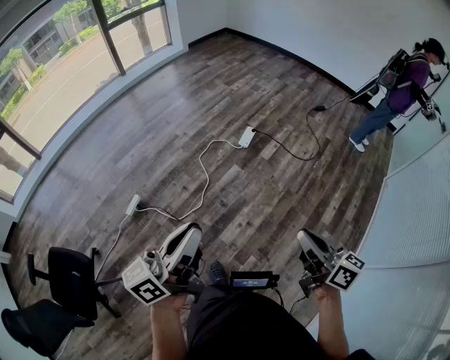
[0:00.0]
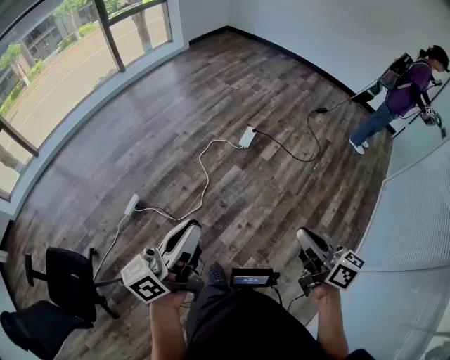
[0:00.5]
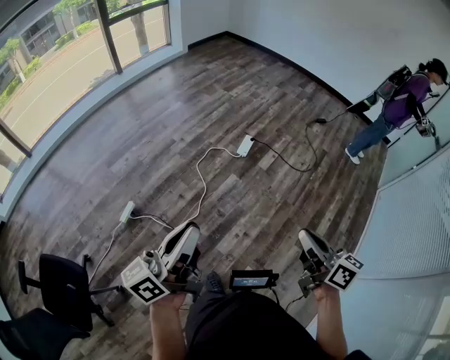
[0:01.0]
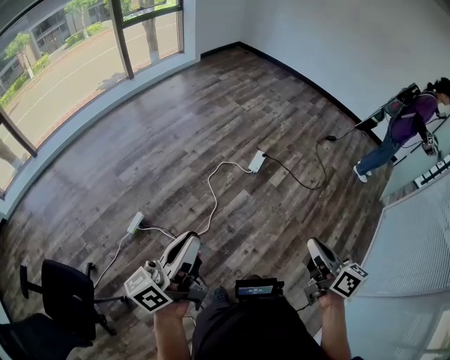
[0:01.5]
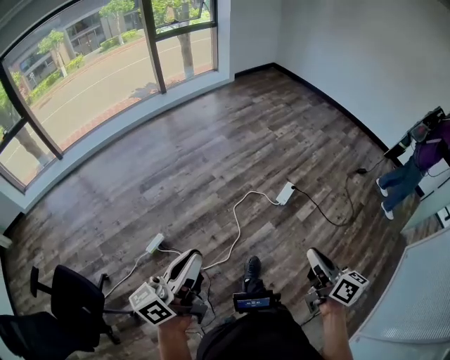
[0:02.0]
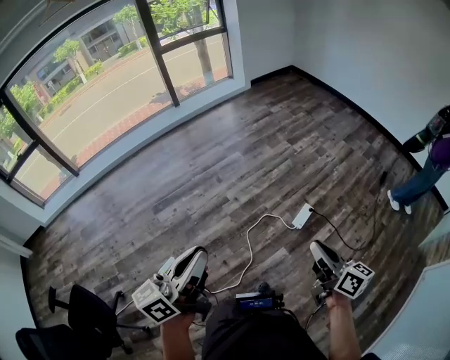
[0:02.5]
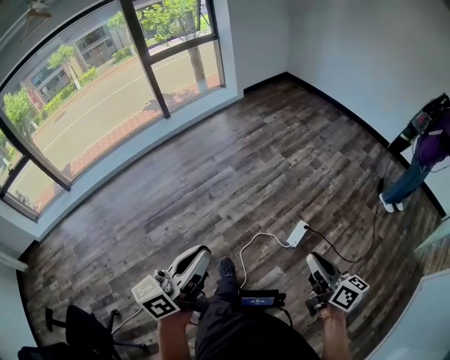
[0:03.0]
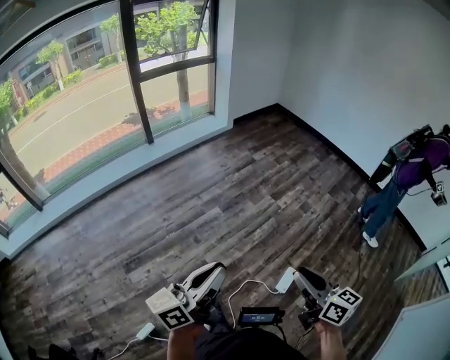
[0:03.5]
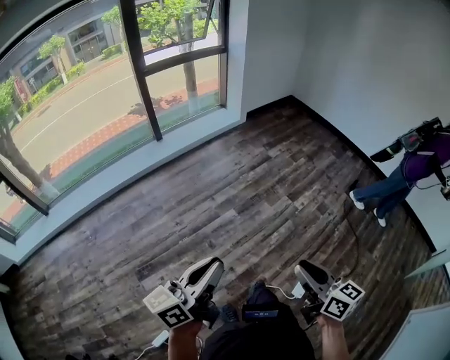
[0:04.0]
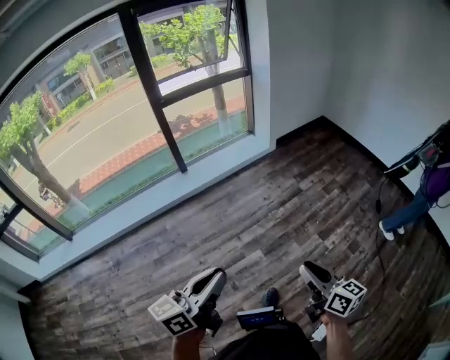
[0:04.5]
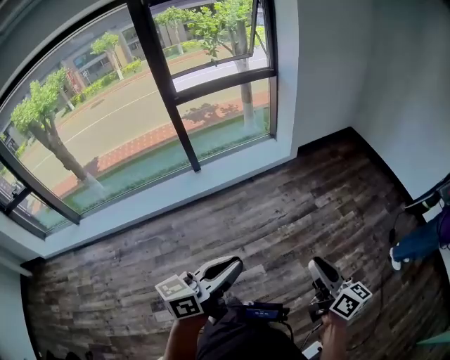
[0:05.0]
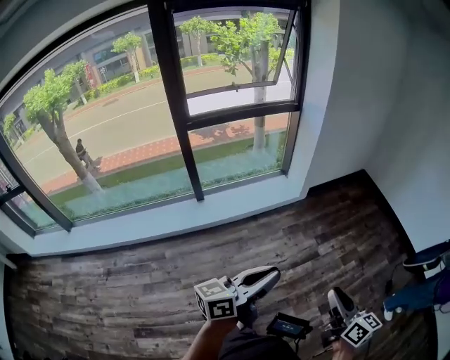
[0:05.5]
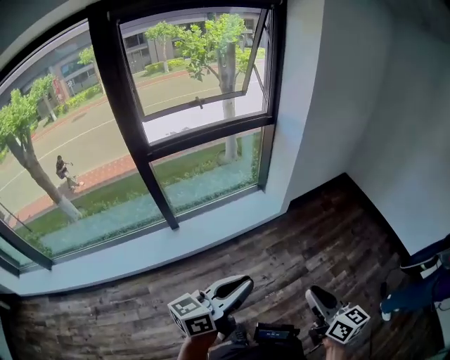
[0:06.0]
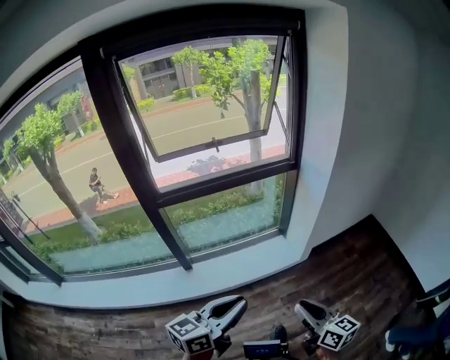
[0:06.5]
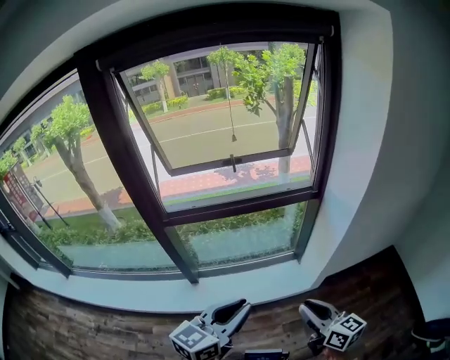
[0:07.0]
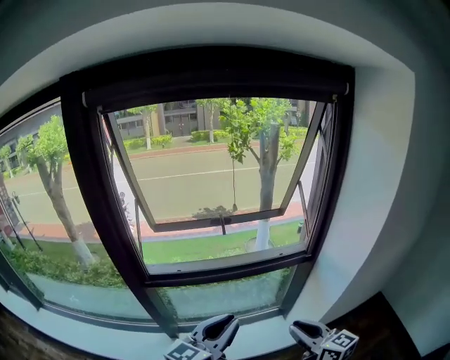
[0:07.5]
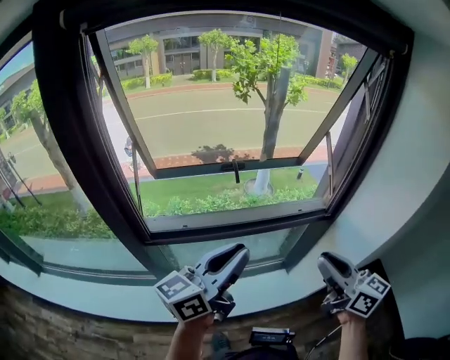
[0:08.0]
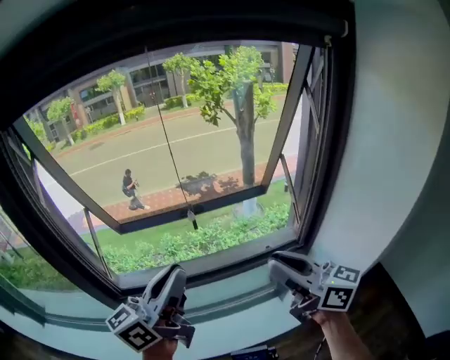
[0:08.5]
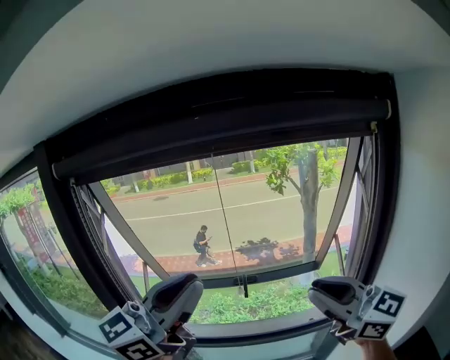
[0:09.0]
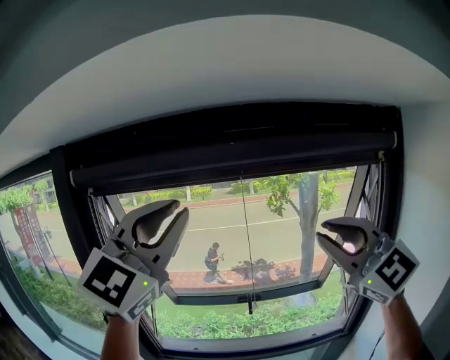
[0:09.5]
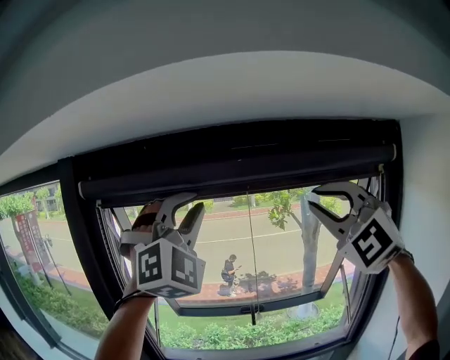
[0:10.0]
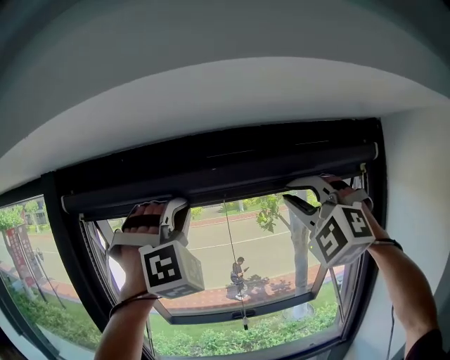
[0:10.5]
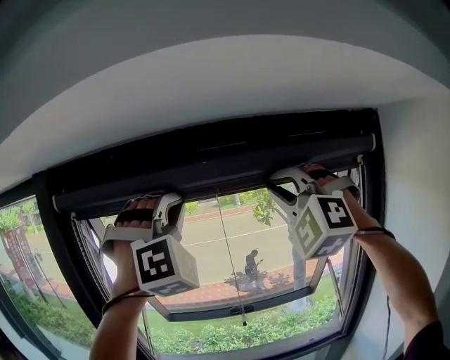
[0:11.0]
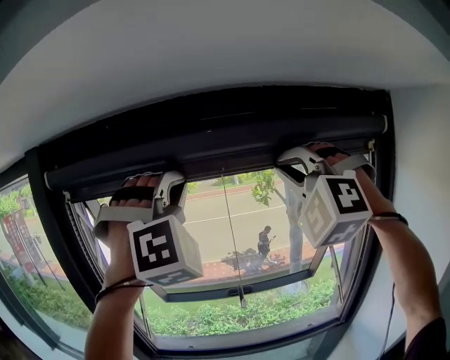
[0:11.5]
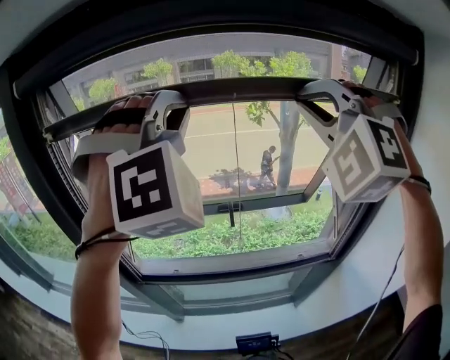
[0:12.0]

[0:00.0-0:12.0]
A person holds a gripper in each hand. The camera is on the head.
0:00.0 to 0:02.0: Both grippers travel together forward and to the left, about 30 cm.
0:02.0 to 0:04.0: The pair of grippers is taken forward, approximately 70 cm.
0:04.0 to 0:06.0: Both grippers are carried forward, some 80 cm.
0:06.0 to 0:08.0: Both grippers are carried forward, some 60 cm. The right gripper changes its angle by roughly 30 degrees. Meanwhile the left gripper turns by roughly 20 degrees.
0:08.0 to 0:10.0: The grippers both shift upward and forward by approximately 50 cm. The left gripper rolls clockwise, seen from behind, by about 110 degrees; the right gripper twists about 90 degrees counterclockwise, seen from behind.
0:10.0 to 0:12.0: The left gripper travels downward by some 10 cm, and rotates about 20 degrees, while the right gripper goes approximately 10 cm downward and forward, and swivels roughly 30 degrees.

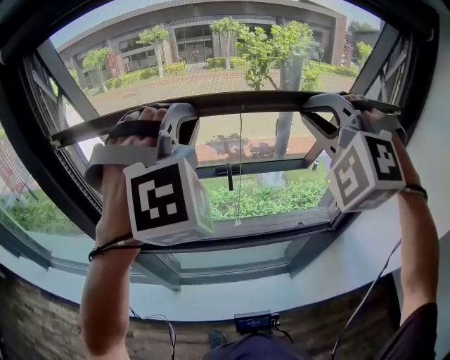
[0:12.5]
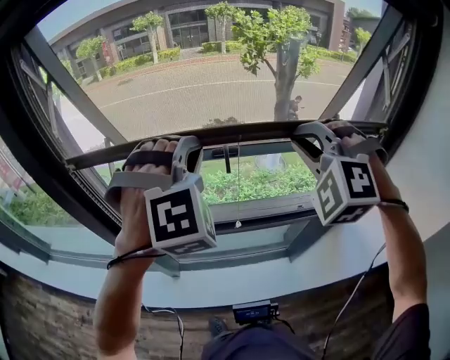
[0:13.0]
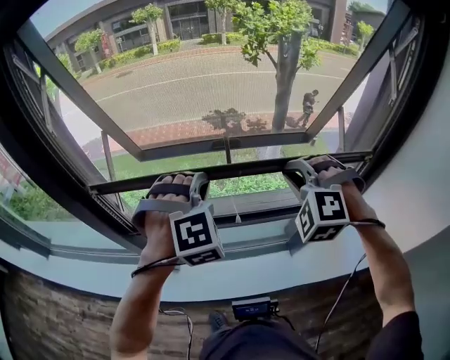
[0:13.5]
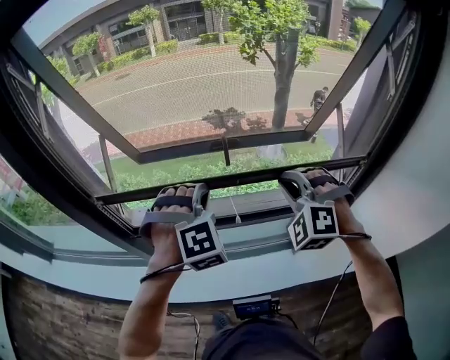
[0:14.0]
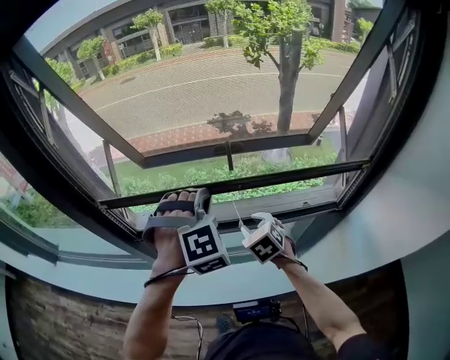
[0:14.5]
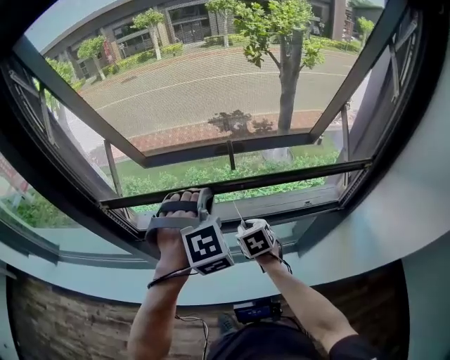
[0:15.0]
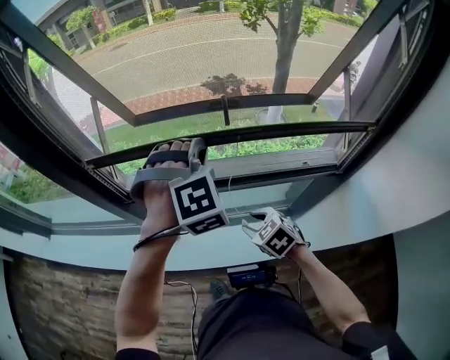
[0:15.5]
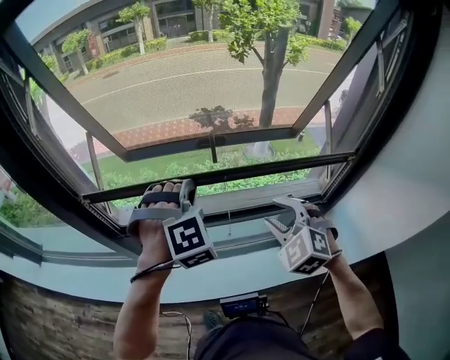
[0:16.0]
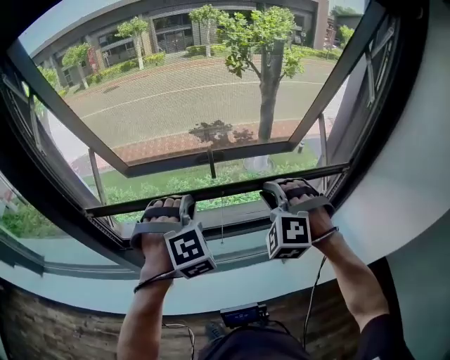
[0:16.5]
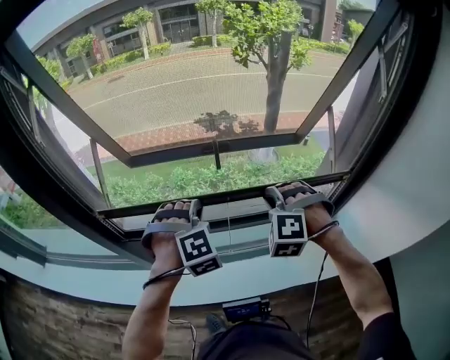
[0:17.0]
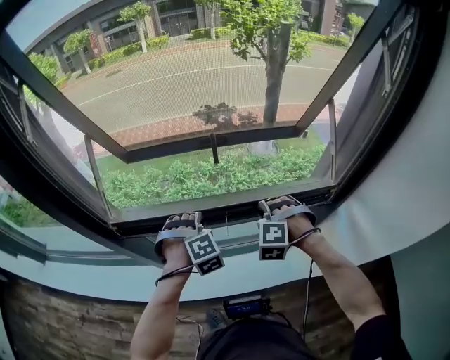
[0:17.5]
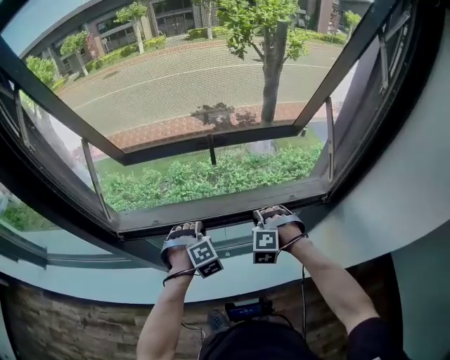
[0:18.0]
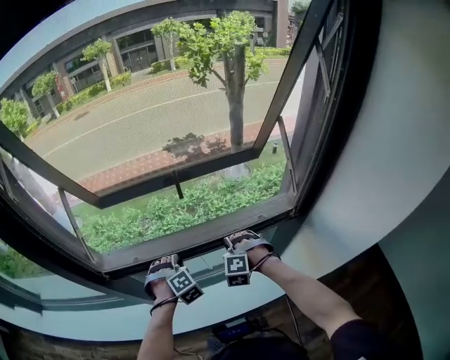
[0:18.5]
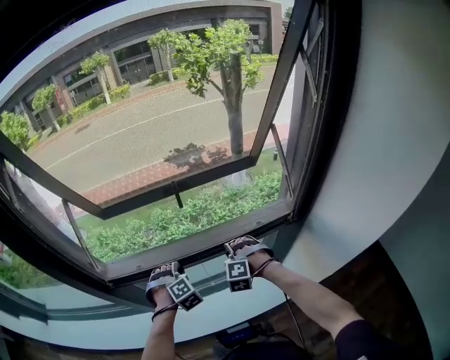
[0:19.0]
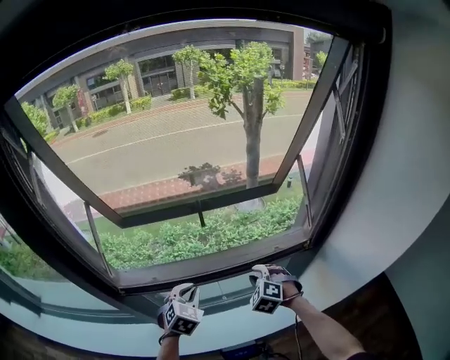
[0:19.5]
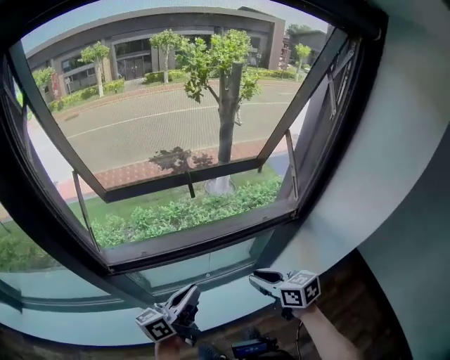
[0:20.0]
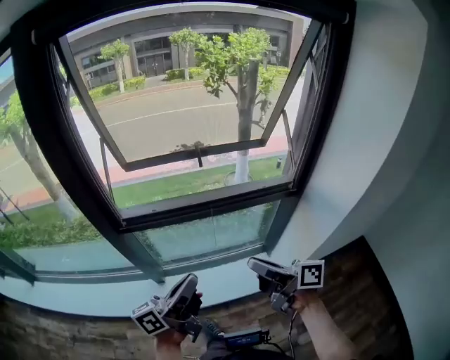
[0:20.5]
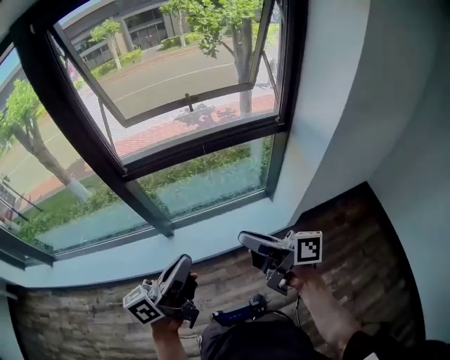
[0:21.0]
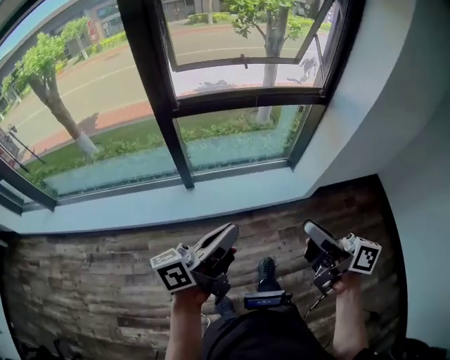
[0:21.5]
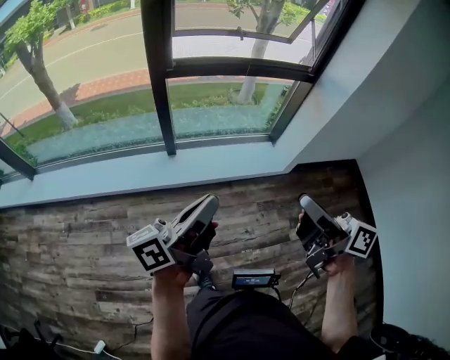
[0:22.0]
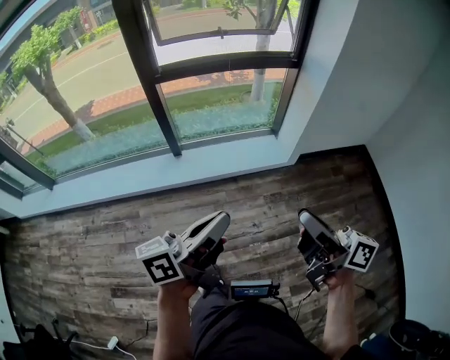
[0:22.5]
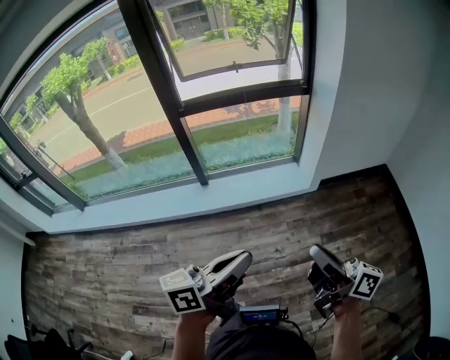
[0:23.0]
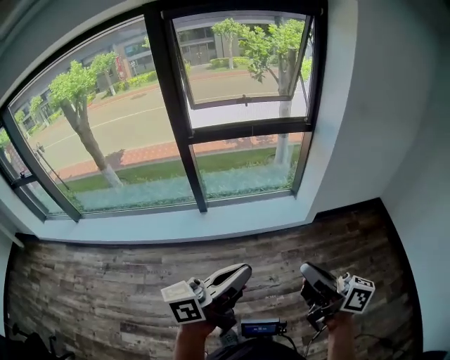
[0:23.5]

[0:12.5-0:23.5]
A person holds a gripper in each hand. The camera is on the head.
0:12.5 to 0:14.5: The left gripper heads downward, covering approximately 30 cm, and rotates approximately 30 degrees, while the right gripper is displaced downward by approximately 50 cm, twists about 60 degrees clockwise, seen from behind, and opens its fingers.
0:14.5 to 0:16.0: The right gripper shifts some 15 cm upward, backward and to the right, and swivels about 30 degrees.
0:16.0 to 0:18.0: Both grippers move downward, roughly 20 cm. The right gripper swivels some 30 degrees, and closes up.
0:18.0 to 0:20.0: The two grippers go about 20 cm backward and upward. The left gripper tips its fingers upward by roughly 60 degrees. The right gripper rotates around the line of its fingers by approximately 90 degrees, clockwise from behind.
0:20.0 to 0:21.5: Both grippers are carried backward, approximately 50 cm. The right gripper tilts its fingers some 30 degrees upward.
0:21.5 to 0:23.5: The right gripper travels backward by some 20 cm, while the left gripper moves backward and to the right, approximately 25 cm.

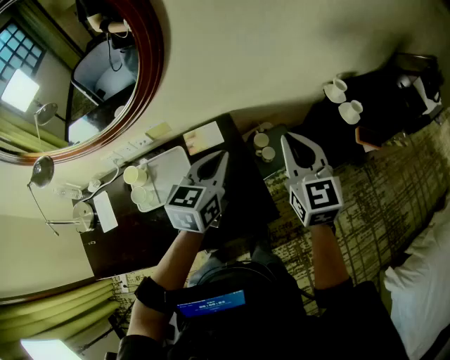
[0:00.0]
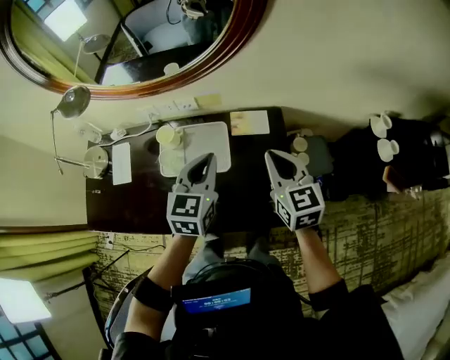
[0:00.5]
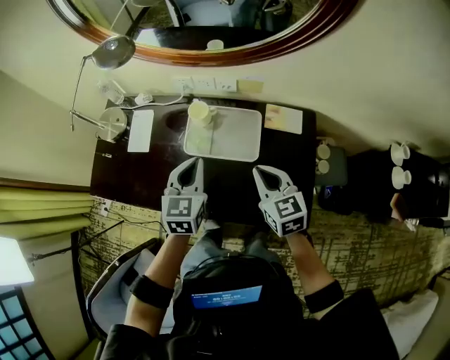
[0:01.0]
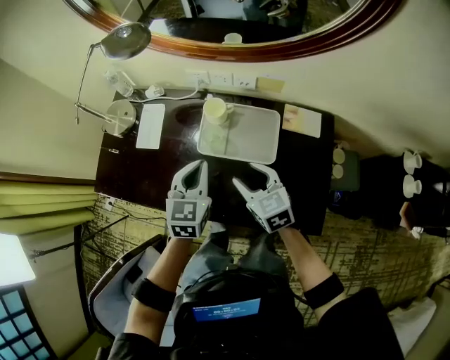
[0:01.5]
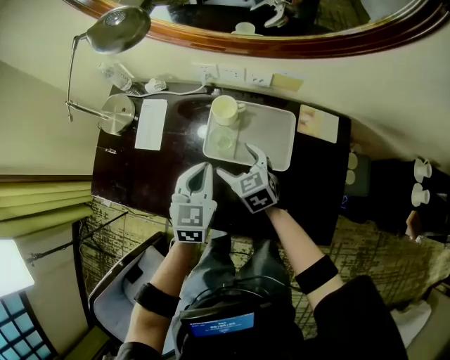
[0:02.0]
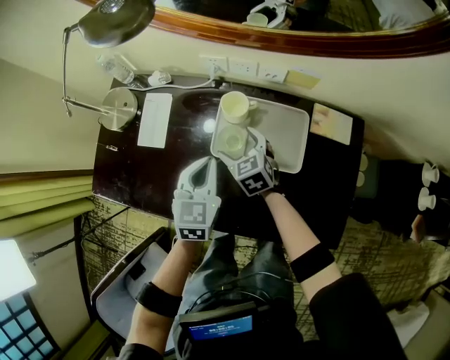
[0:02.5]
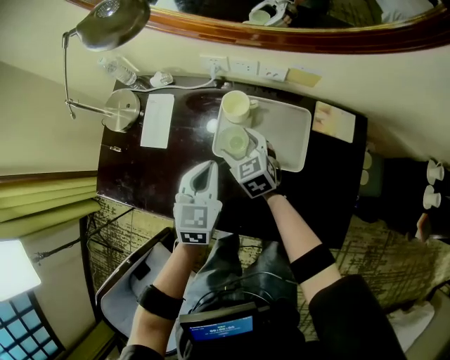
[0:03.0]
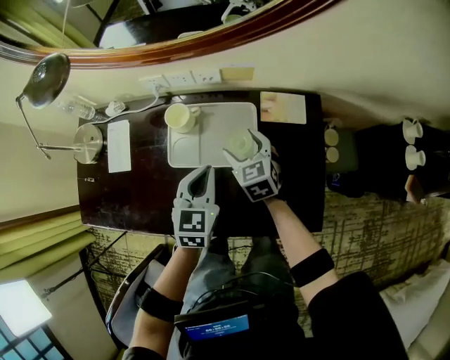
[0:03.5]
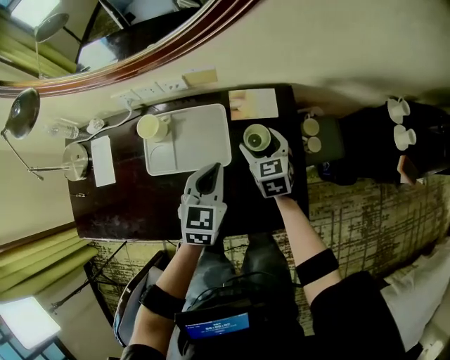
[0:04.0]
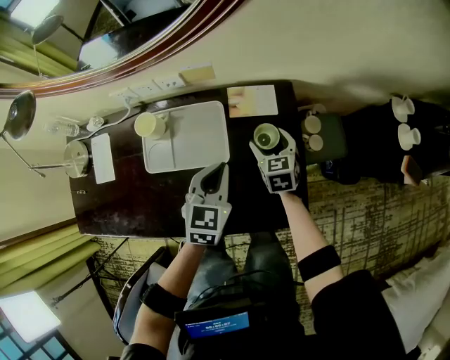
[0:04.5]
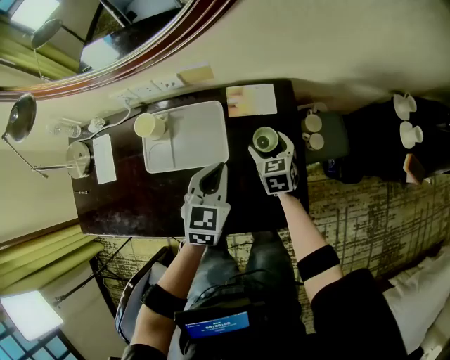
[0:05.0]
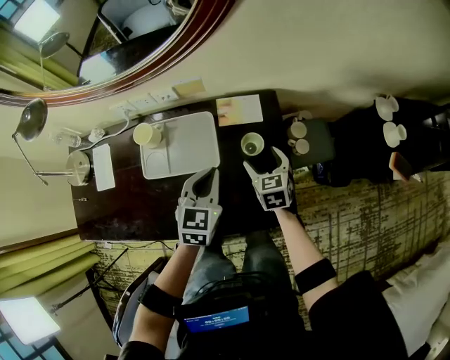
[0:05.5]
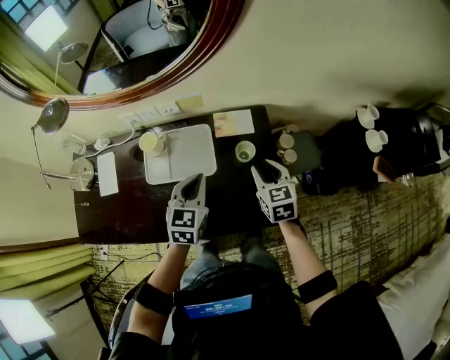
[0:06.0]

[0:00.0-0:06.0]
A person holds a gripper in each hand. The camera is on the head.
0:00.0 to 0:02.0: The two grippers travel together, roughly 50 cm. The right gripper swivels roughly 50 degrees, and opens its fingers. Meanwhile the left gripper swivels roughly 40 degrees.
0:02.0 to 0:04.0: The left gripper moves some 25 cm, and changes its angle by roughly 20 degrees. Meanwhile the right gripper changes place by roughly 30 cm, and rotates roughly 30 degrees.
0:04.0 to 0:06.0: The right gripper moves upward, backward and to the right, some 15 cm, and closes its fingers; the left gripper travels upward by about 5 cm.
